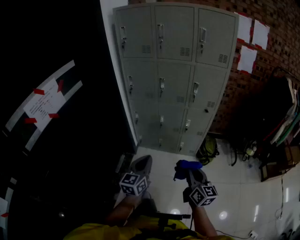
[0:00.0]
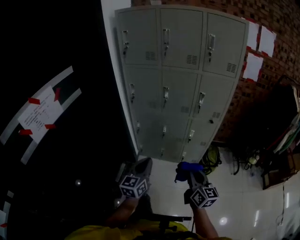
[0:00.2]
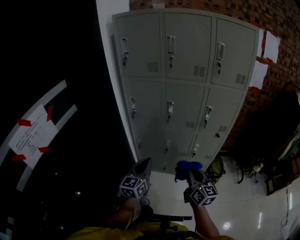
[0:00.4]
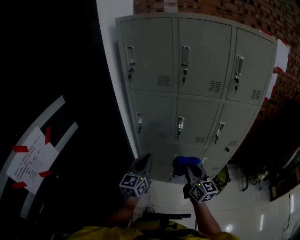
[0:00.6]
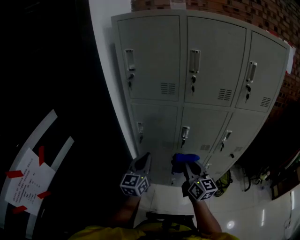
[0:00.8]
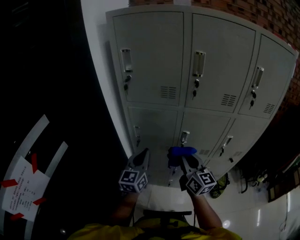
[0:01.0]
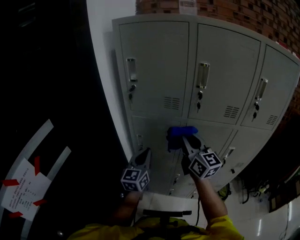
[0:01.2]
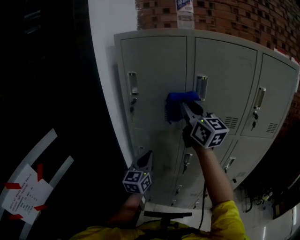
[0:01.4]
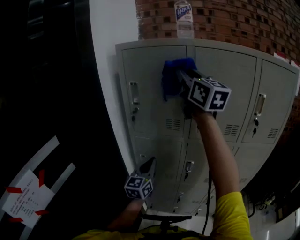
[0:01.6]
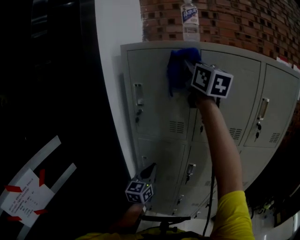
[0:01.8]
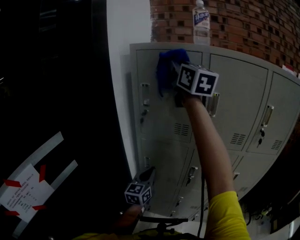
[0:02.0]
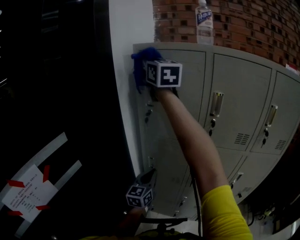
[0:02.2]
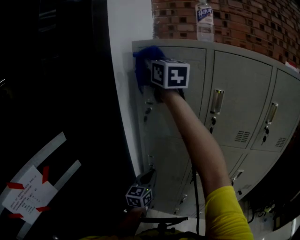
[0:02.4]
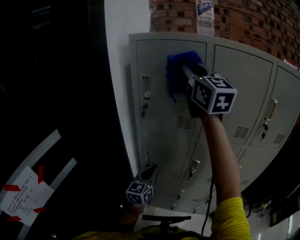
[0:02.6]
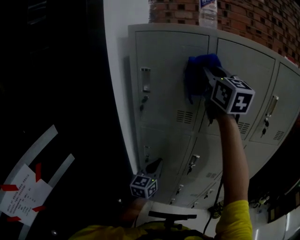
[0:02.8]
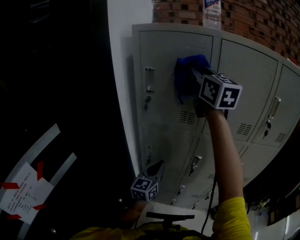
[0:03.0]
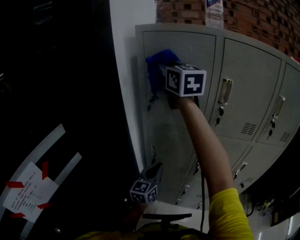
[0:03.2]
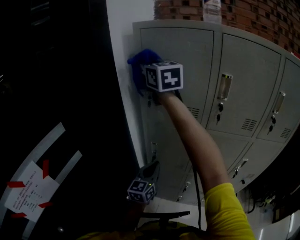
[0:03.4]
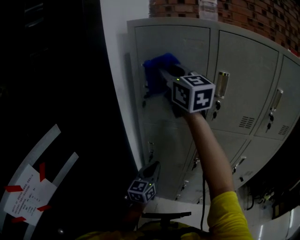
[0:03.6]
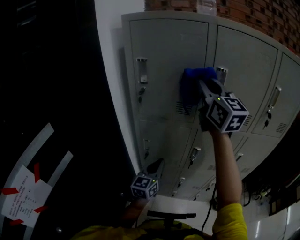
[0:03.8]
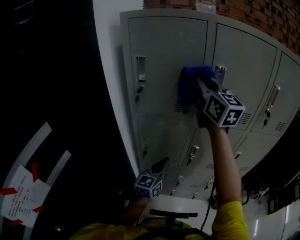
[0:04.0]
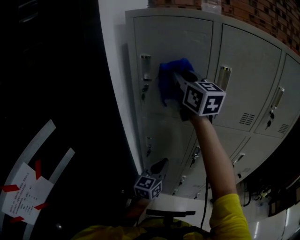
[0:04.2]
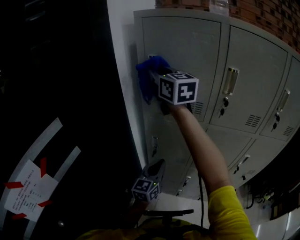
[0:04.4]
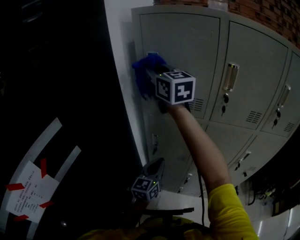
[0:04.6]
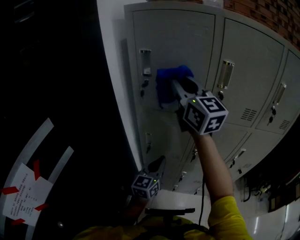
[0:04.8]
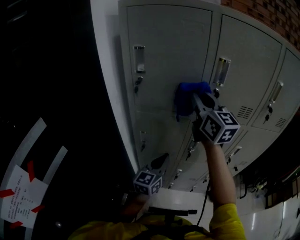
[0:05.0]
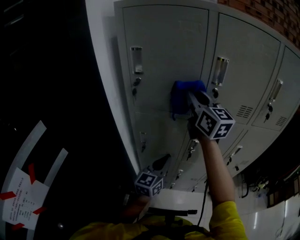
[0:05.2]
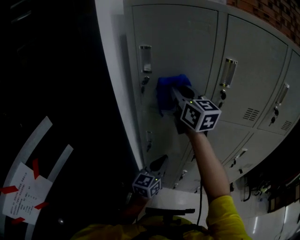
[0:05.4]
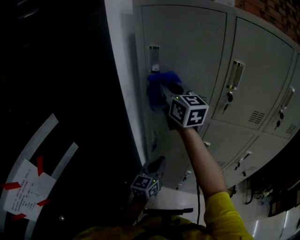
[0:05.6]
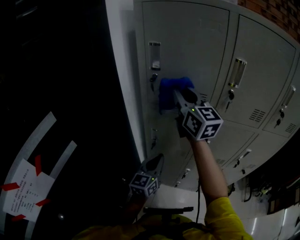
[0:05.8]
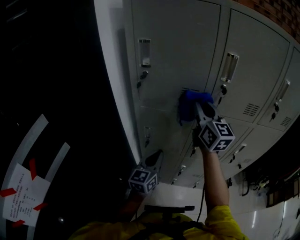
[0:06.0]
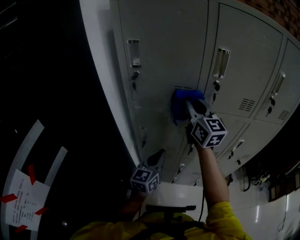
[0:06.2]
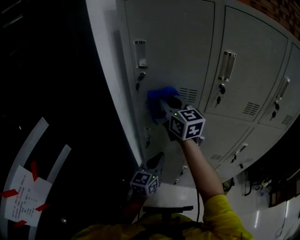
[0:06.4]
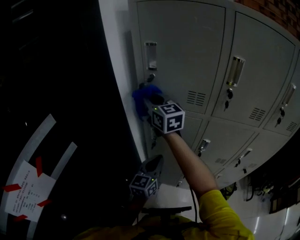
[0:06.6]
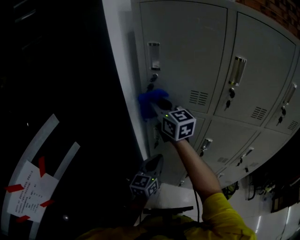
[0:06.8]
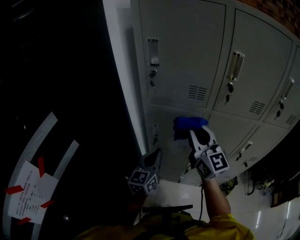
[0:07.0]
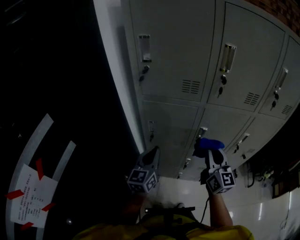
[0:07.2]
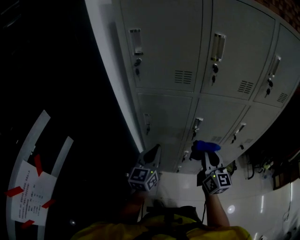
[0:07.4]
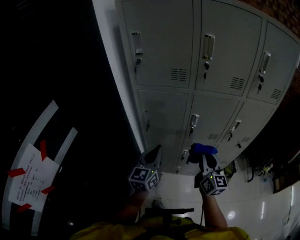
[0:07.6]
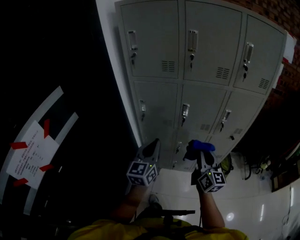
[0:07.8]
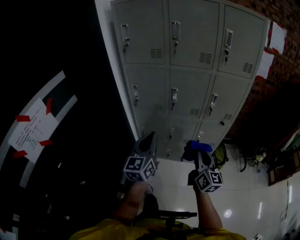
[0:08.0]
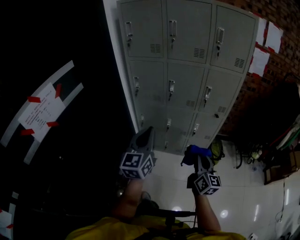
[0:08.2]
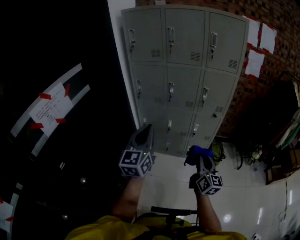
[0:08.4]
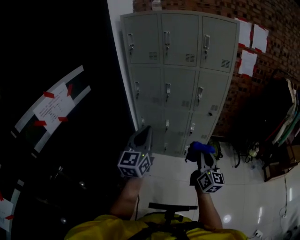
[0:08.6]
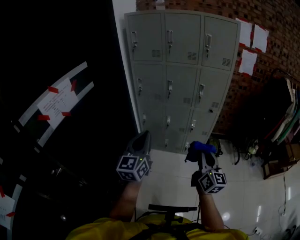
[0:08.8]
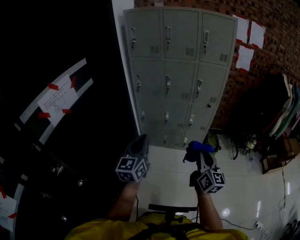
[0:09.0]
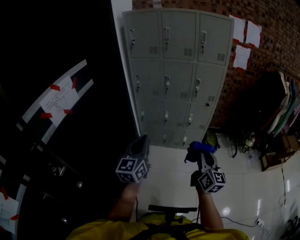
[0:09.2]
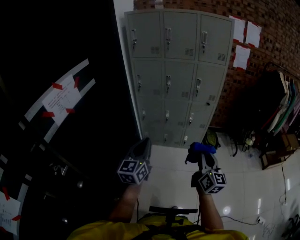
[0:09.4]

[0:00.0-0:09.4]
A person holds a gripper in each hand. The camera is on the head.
0:00.0 to 0:01.6: The two grippers travel together, forward, about 60 cm. The right gripper heads upward, covering approximately 50 cm, and turns by roughly 30 degrees.
0:01.6 to 0:03.2: The left gripper travels downward by some 5 cm. The right gripper swings left and right, roughly 20 cm each way, with 2 reversals.
0:03.2 to 0:04.8: The right gripper moves left and right over about 20 cm, changing direction 3 times.
0:04.8 to 0:06.2: The left gripper goes left and right, some 10 cm each way, reversing 2 times. Meanwhile the right gripper swings left and right, roughly 15 cm each way, with 2 reversals.
0:06.2 to 0:07.8: The right gripper shifts roughly 40 cm backward and downward, while the left gripper moves backward, roughly 20 cm.
0:07.8 to 0:09.4: Both grippers are carried backward, some 50 cm.

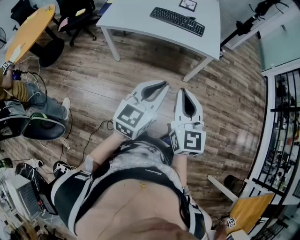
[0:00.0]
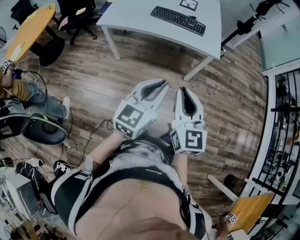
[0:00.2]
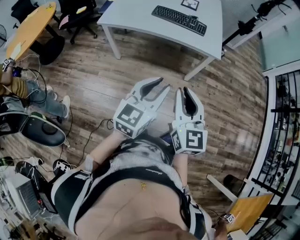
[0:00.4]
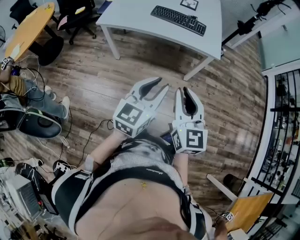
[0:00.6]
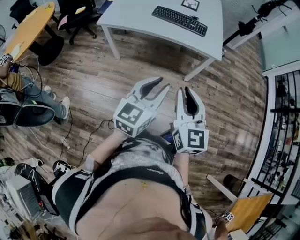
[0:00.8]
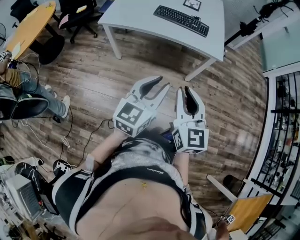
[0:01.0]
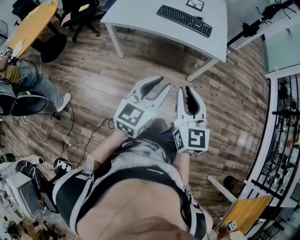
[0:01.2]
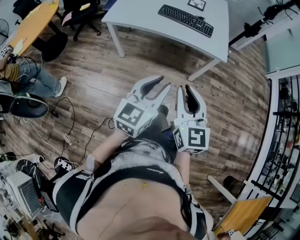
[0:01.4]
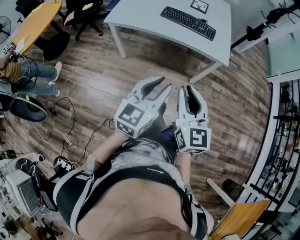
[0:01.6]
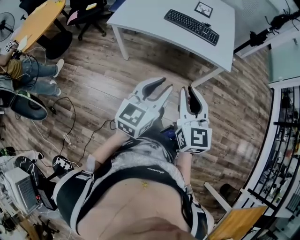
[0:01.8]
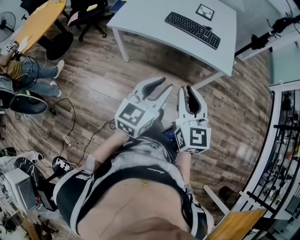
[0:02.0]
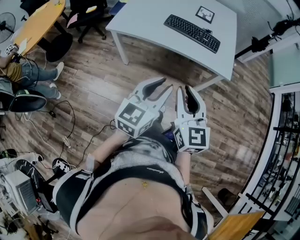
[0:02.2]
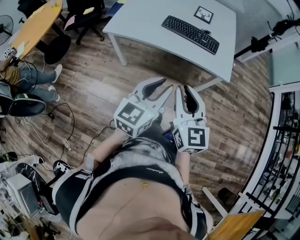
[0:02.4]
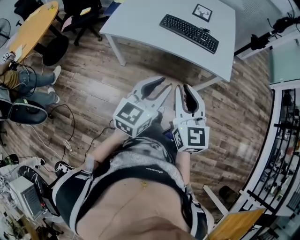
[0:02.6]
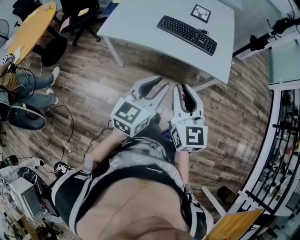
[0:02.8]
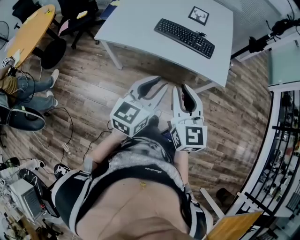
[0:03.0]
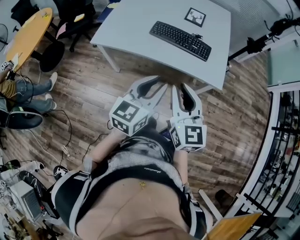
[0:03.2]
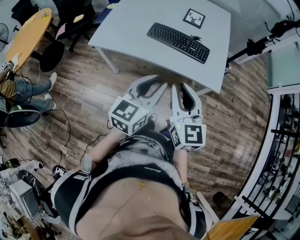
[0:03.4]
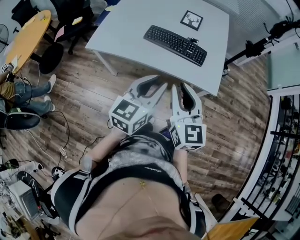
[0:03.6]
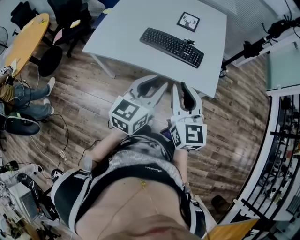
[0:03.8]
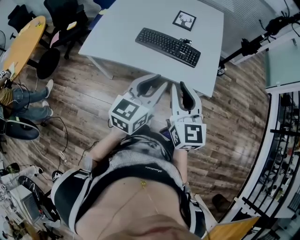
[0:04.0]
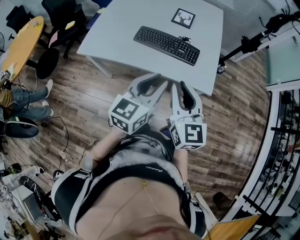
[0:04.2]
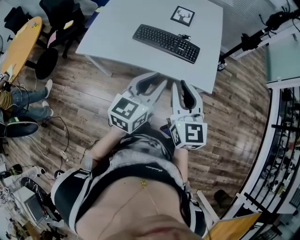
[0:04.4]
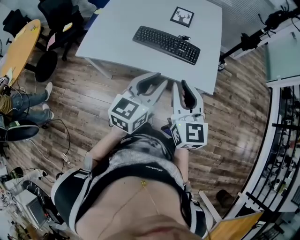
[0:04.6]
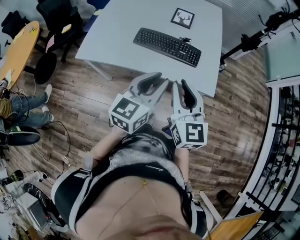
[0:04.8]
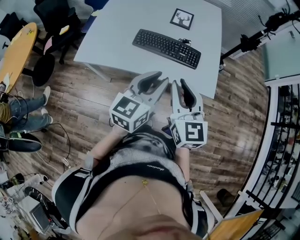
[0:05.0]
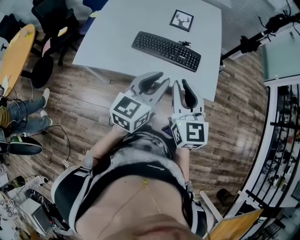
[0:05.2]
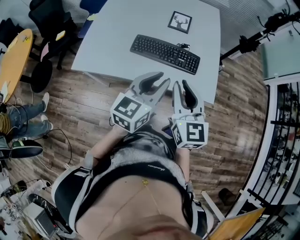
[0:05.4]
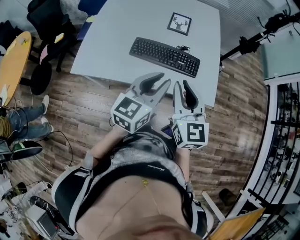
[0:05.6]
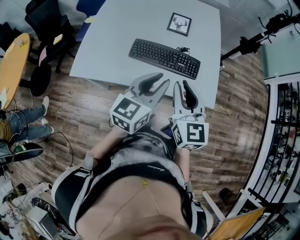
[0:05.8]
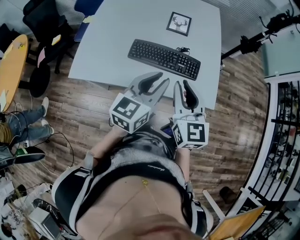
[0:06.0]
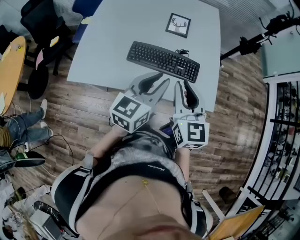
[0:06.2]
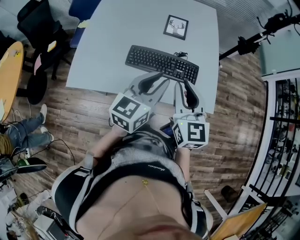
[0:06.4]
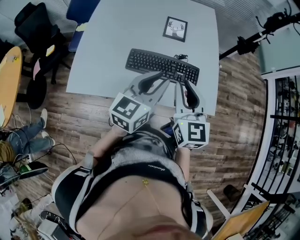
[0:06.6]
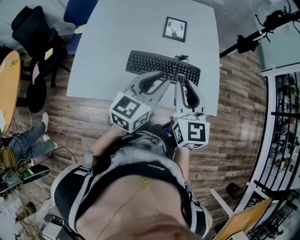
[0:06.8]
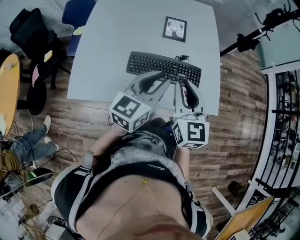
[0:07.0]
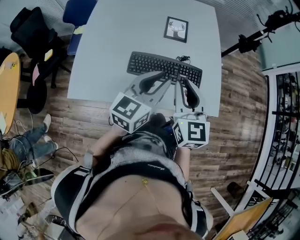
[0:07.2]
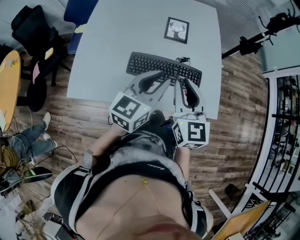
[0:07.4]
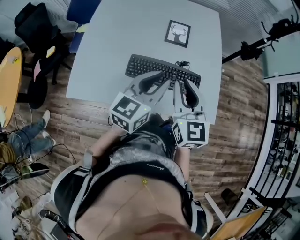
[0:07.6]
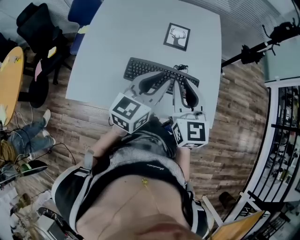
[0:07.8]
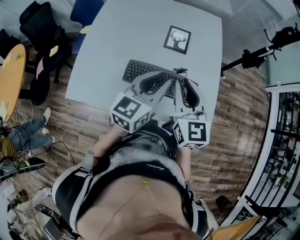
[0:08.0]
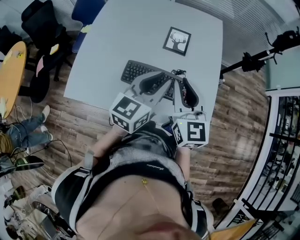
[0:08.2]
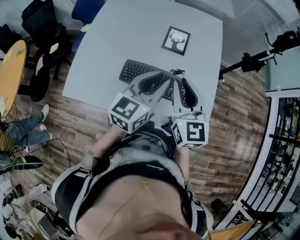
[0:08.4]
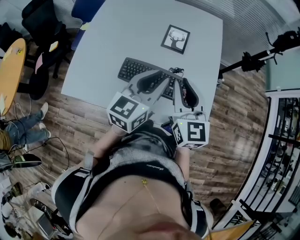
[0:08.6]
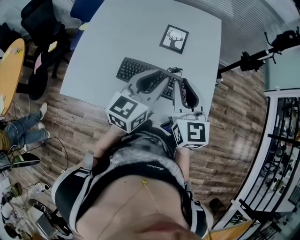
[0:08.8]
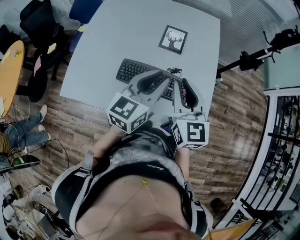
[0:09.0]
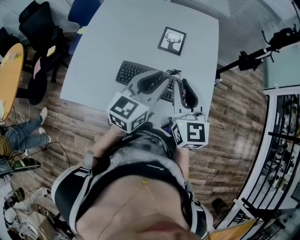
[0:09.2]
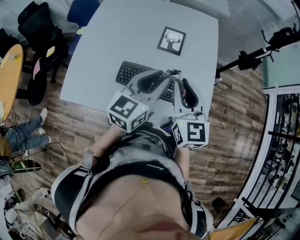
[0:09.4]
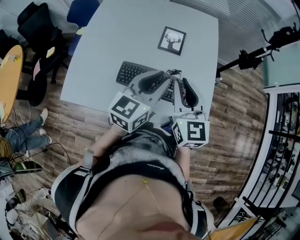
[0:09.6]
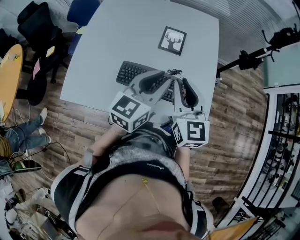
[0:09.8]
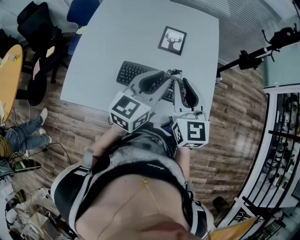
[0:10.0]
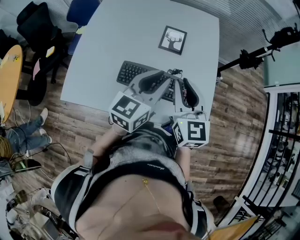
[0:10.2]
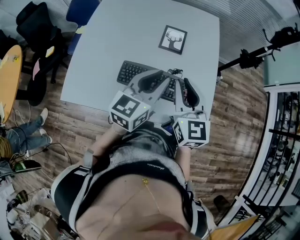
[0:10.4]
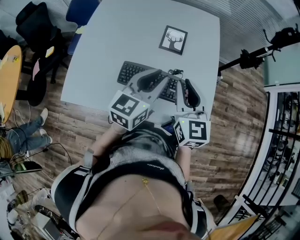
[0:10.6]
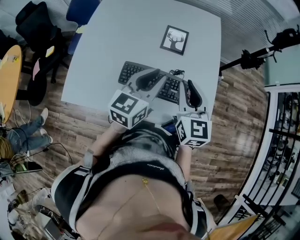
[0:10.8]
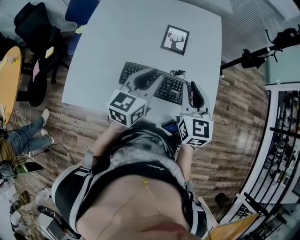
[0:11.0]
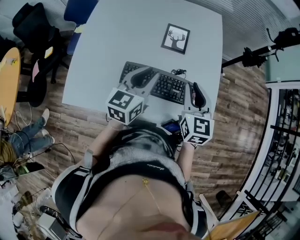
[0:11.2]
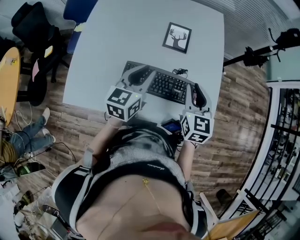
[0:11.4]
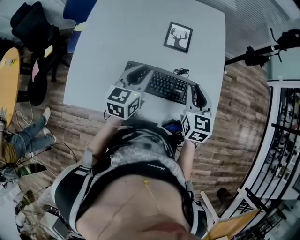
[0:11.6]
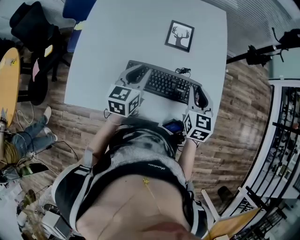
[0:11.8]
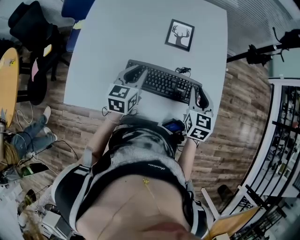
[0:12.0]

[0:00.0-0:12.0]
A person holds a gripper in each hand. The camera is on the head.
0:00.0 to 0:01.6: The right gripper moves about 5 cm, while the left gripper ends up about 5 cm from where it was.
0:01.6 to 0:03.0: Both grippers travel together forward, approximately 20 cm.
0:03.0 to 0:04.4: The grippers both shift forward and to the right by some 15 cm.
0:04.4 to 0:06.0: Both grippers travel together forward, roughly 15 cm.
0:06.0 to 0:07.6: The grippers both shift forward by some 10 cm.
0:07.6 to 0:09.0: The left gripper moves roughly 5 cm, while the right gripper ends up roughly 5 cm from where it was.
0:09.0 to 0:10.4: There are only small adjustments of the grippers.
0:10.4 to 0:12.0: The right gripper moves downward, approximately 15 cm, and swivels approximately 30 degrees, while the left gripper shifts approximately 20 cm downward and to the left, and turns by approximately 20 degrees.

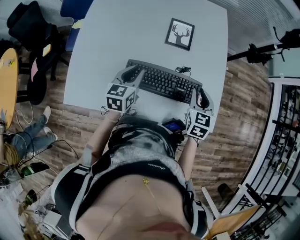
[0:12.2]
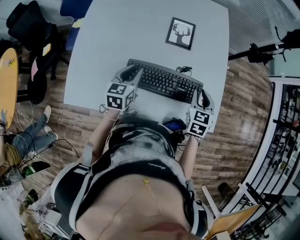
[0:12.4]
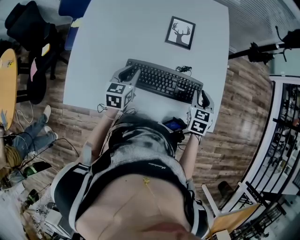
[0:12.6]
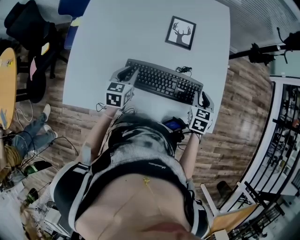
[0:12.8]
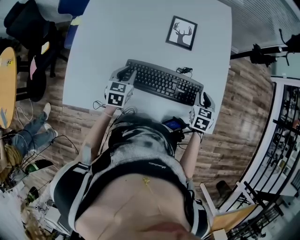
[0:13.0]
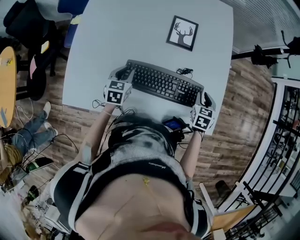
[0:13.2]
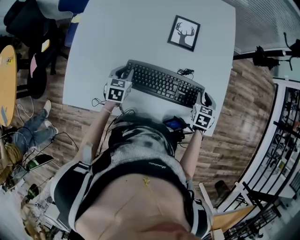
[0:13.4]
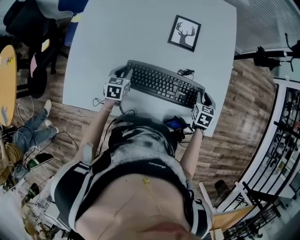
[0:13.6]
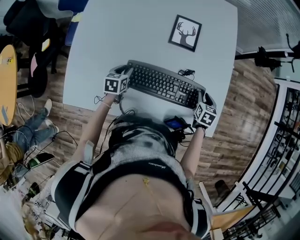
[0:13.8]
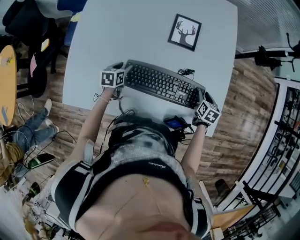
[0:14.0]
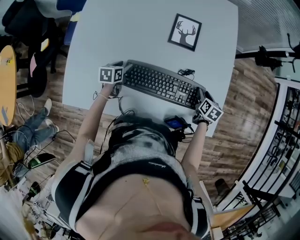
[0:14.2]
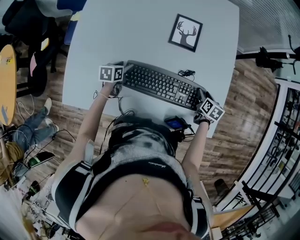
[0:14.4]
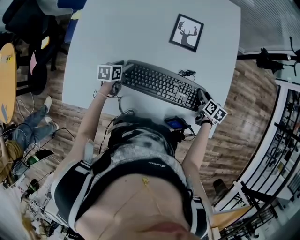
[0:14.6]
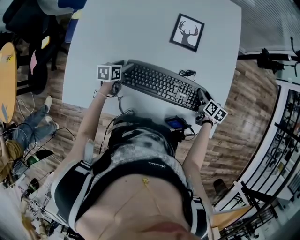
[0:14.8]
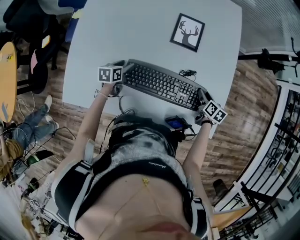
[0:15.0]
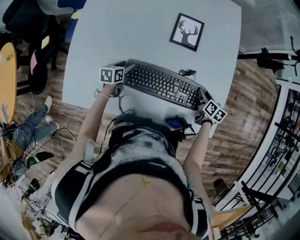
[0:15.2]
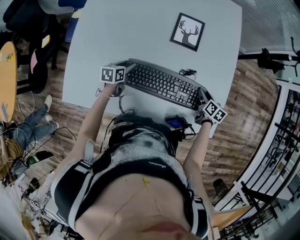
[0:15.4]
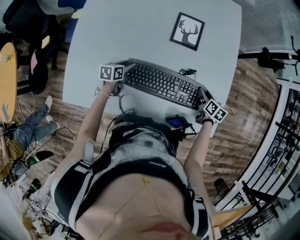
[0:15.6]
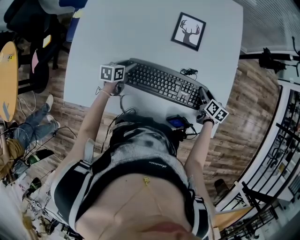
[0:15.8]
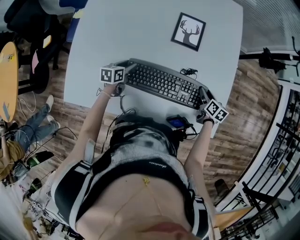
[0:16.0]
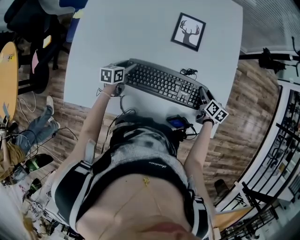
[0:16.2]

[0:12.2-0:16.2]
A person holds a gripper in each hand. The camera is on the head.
0:12.2 to 0:13.6: The left gripper is displaced downward and to the left by approximately 15 cm, and turns by roughly 20 degrees. Meanwhile the right gripper heads downward and to the right, covering about 15 cm.
0:13.6 to 0:14.8: Both grippers travel together downward, approximately 5 cm. The right gripper changes its angle by approximately 30 degrees, and opens, while the left gripper rotates about 20 degrees, and opens its fingers.
0:14.8 to 0:16.2: The grippers move only a little.
